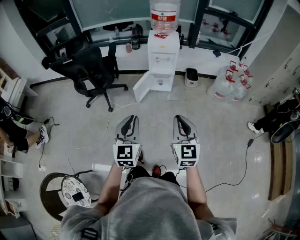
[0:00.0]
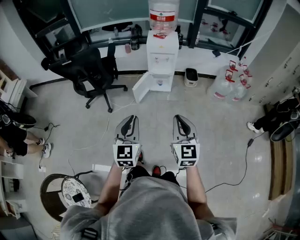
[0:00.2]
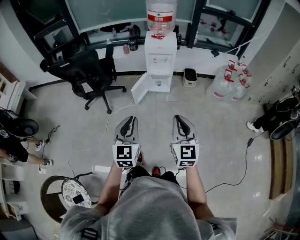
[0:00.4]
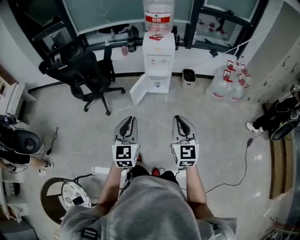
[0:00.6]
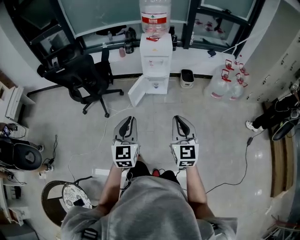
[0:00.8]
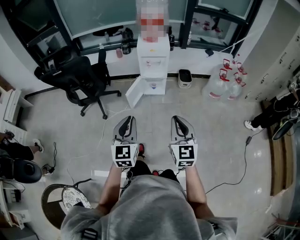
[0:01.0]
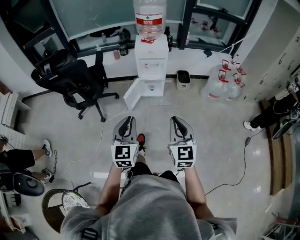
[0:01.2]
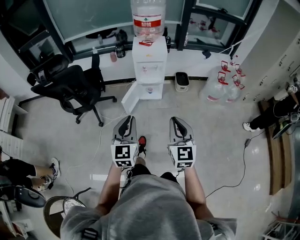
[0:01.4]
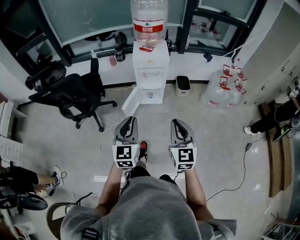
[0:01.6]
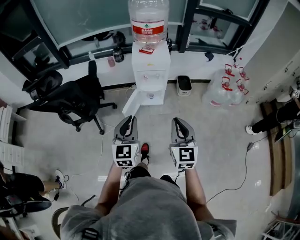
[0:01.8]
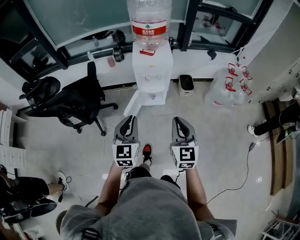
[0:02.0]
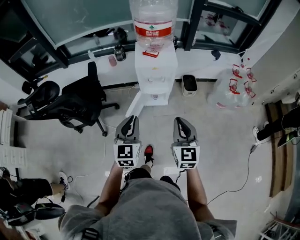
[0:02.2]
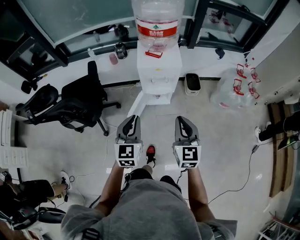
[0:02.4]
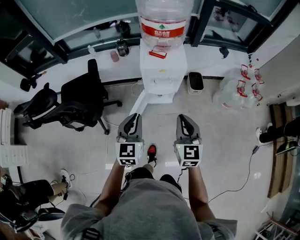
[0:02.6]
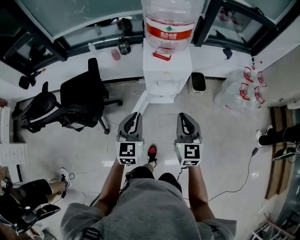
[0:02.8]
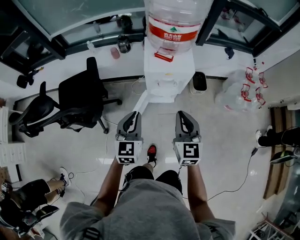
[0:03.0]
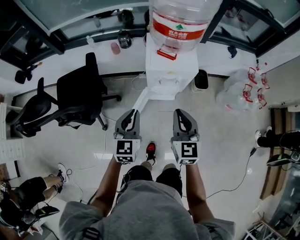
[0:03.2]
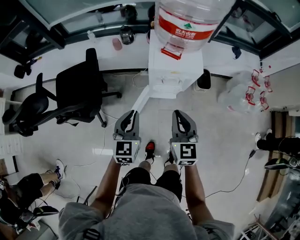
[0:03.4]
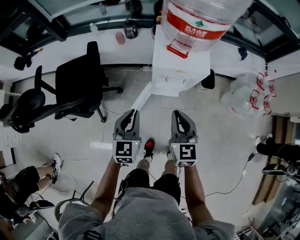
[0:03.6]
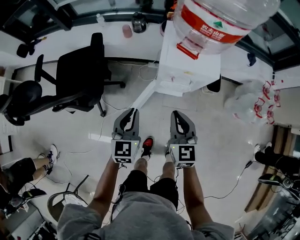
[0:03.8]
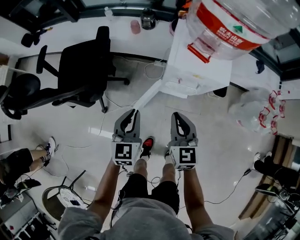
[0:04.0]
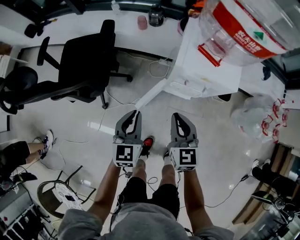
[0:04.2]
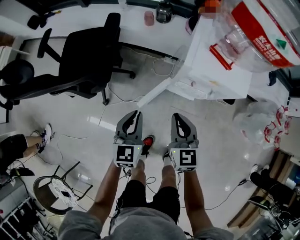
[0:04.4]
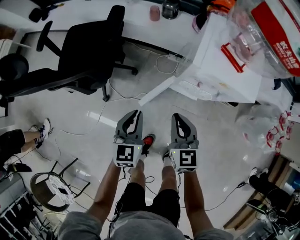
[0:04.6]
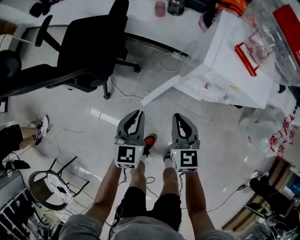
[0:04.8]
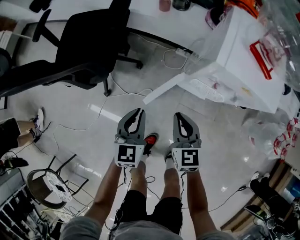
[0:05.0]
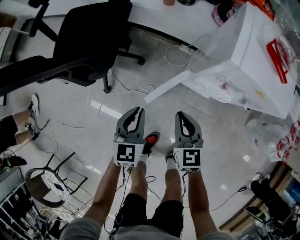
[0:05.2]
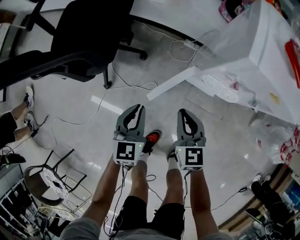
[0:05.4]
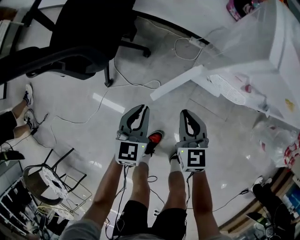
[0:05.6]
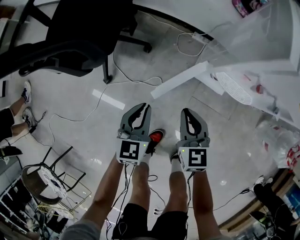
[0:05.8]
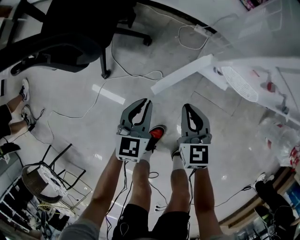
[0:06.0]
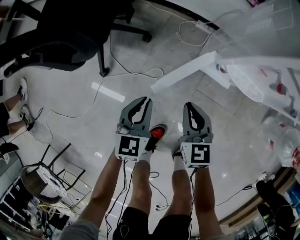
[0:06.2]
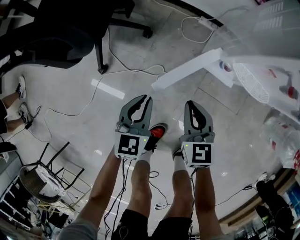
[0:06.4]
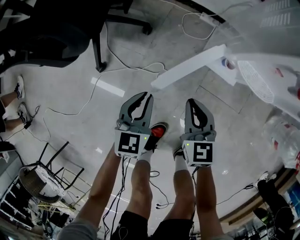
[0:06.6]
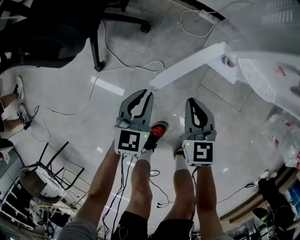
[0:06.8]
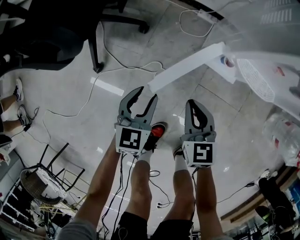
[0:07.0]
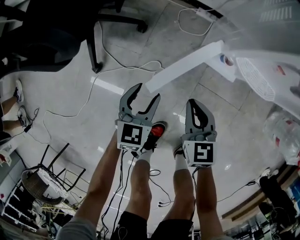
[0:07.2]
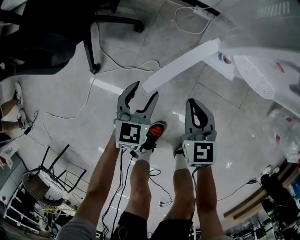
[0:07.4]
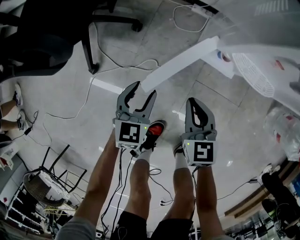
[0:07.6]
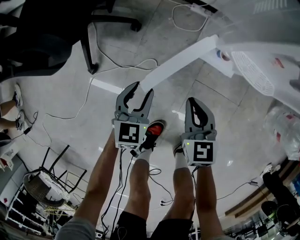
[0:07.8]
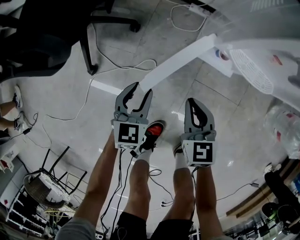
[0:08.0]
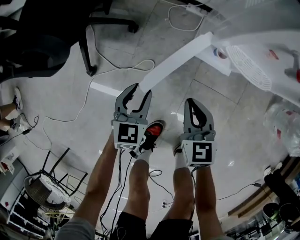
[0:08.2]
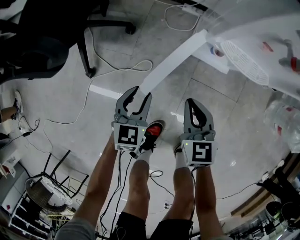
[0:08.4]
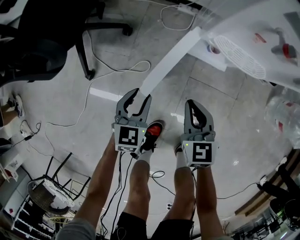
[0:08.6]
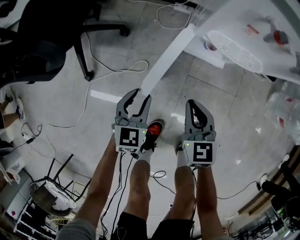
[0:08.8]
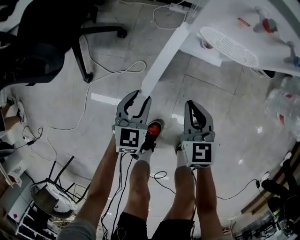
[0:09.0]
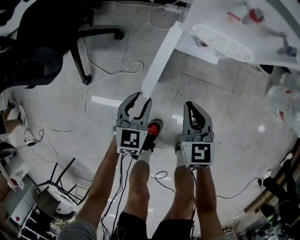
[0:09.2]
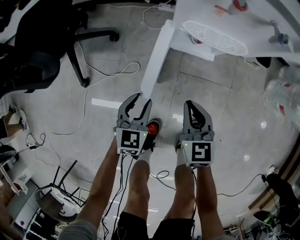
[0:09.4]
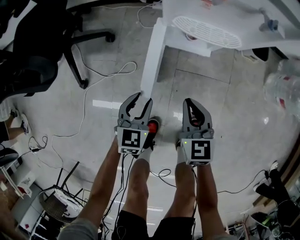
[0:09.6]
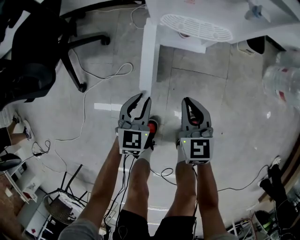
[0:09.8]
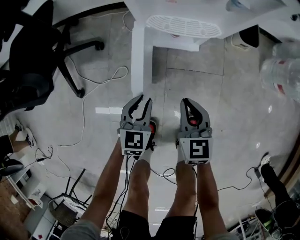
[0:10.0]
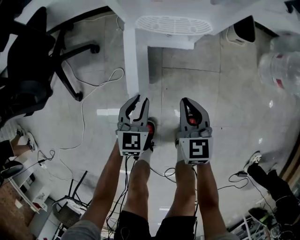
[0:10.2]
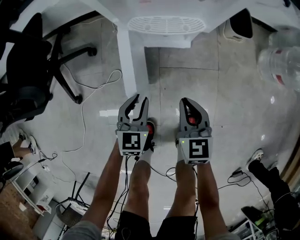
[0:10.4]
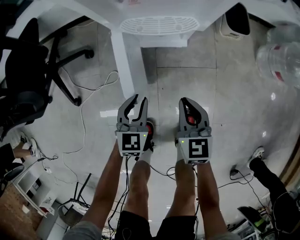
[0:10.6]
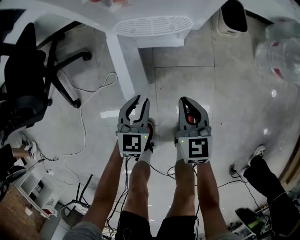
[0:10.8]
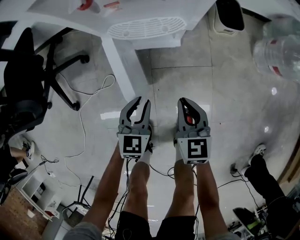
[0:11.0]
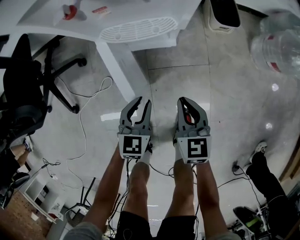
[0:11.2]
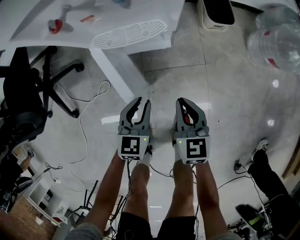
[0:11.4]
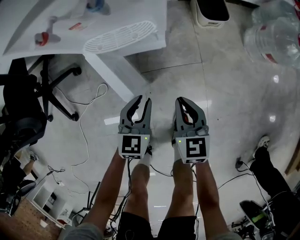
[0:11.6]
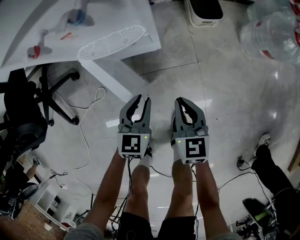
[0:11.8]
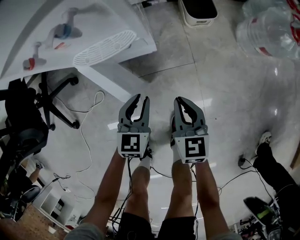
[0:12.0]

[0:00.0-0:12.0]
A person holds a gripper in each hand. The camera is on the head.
0:00.0 to 0:01.6: The grippers both shift forward by about 20 cm.
0:01.6 to 0:03.0: Both grippers move forward, some 30 cm.
0:03.0 to 0:04.4: The left gripper is displaced downward by about 15 cm, and changes its angle by approximately 20 degrees, while the right gripper goes about 25 cm downward, to the left and forward, and rotates some 30 degrees.
0:04.4 to 0:06.0: Both grippers move downward, about 30 cm.
0:06.0 to 0:07.6: Both grippers move downward, roughly 10 cm. The left gripper opens.
0:07.6 to 0:09.0: The left gripper shifts approximately 5 cm backward and to the right. Meanwhile the right gripper goes approximately 10 cm to the right and backward.
0:09.0 to 0:10.4: The grippers both shift to the right by about 15 cm.
0:10.4 to 0:12.0: The grippers both shift to the right by roughly 15 cm.

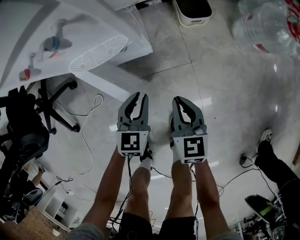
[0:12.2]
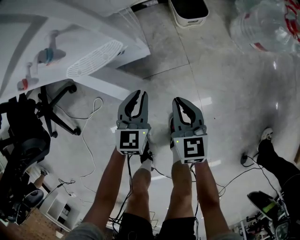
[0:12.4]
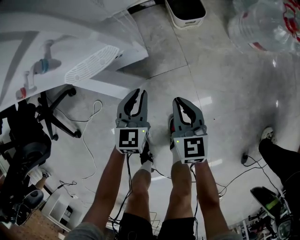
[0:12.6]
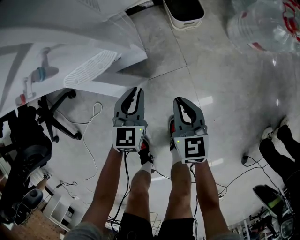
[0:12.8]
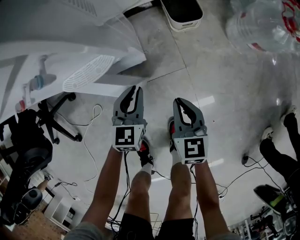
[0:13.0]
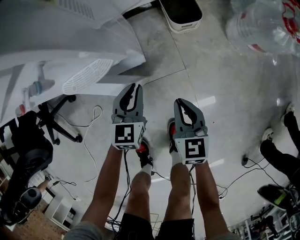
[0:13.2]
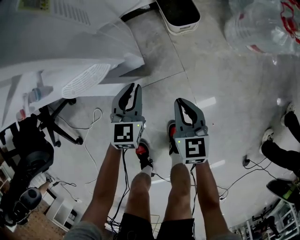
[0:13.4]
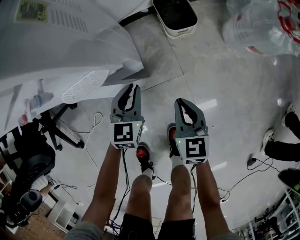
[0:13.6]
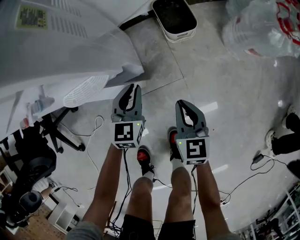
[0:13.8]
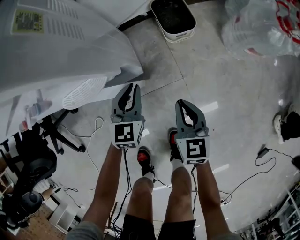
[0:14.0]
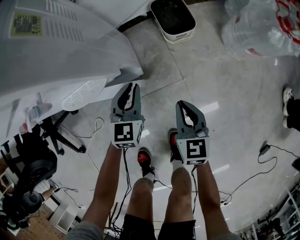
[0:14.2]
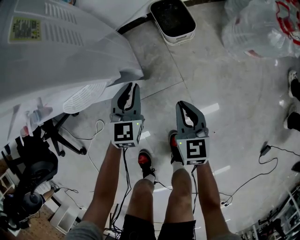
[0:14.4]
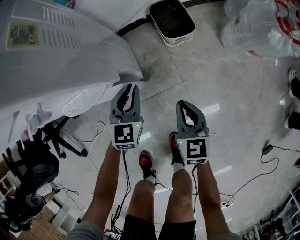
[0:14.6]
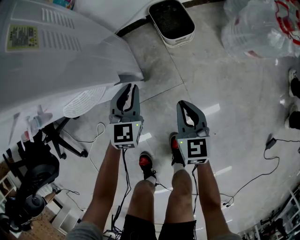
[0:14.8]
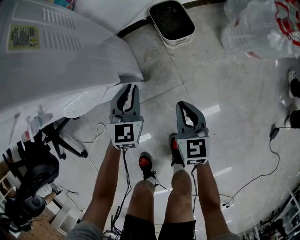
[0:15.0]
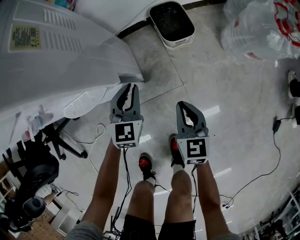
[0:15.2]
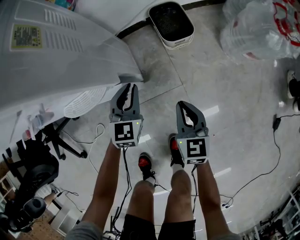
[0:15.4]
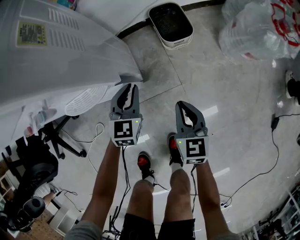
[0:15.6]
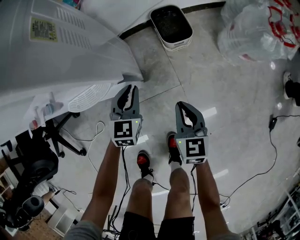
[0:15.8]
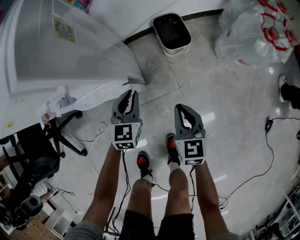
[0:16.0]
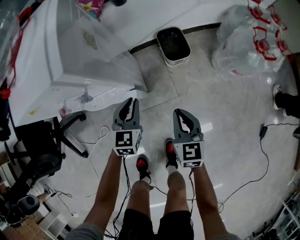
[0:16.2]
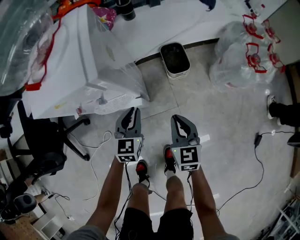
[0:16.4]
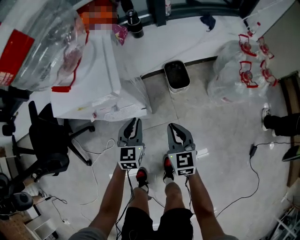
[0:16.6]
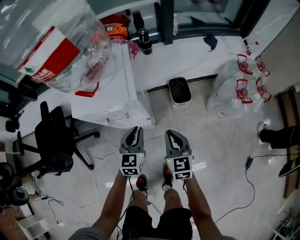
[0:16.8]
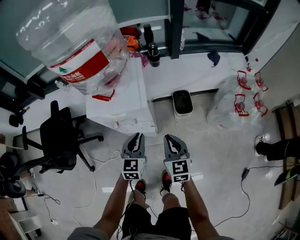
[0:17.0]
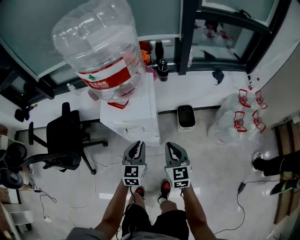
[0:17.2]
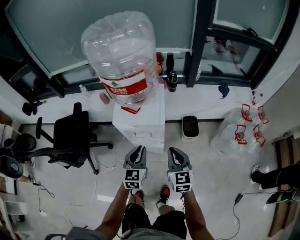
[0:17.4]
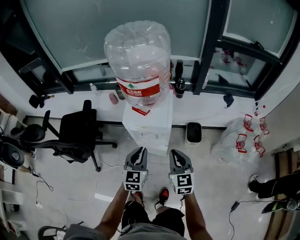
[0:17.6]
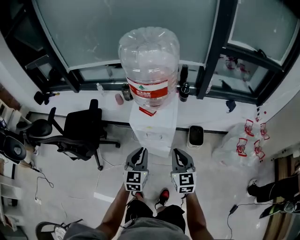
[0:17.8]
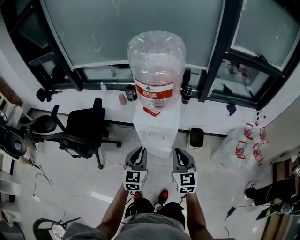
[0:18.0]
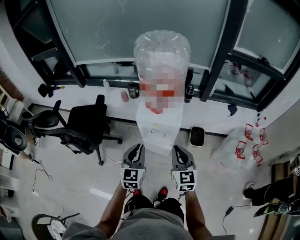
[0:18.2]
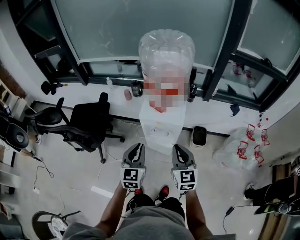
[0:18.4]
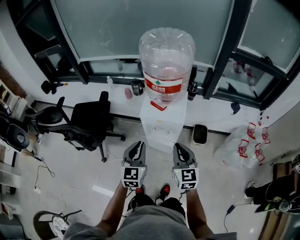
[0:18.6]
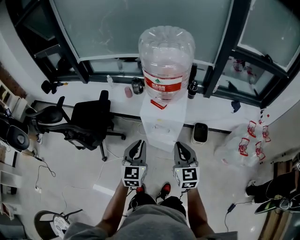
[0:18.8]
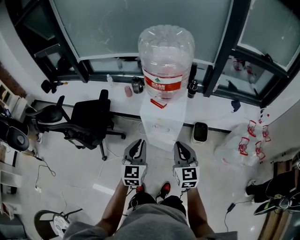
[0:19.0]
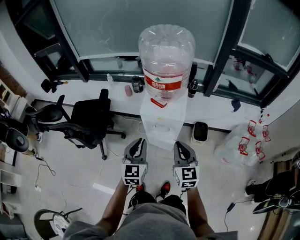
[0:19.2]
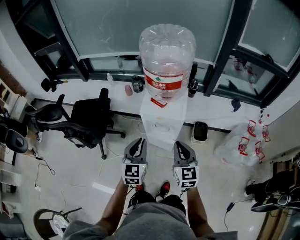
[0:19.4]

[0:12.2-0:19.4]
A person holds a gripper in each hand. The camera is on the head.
0:12.2 to 0:13.6: The left gripper travels forward by approximately 10 cm. The right gripper is displaced to the right and forward by about 10 cm.
0:13.6 to 0:15.0: The grippers move only a little.
0:15.0 to 0:16.6: The grippers both shift upward by roughly 25 cm.
0:16.6 to 0:18.0: The left gripper travels upward and to the left by about 35 cm, and rotates roughly 20 degrees; the right gripper heads upward, covering about 35 cm, and changes its angle by approximately 20 degrees.
0:18.0 to 0:19.4: The left gripper moves some 5 cm.

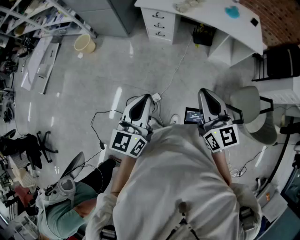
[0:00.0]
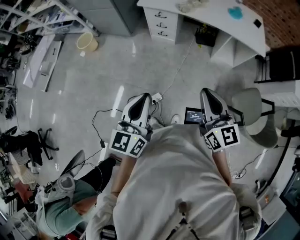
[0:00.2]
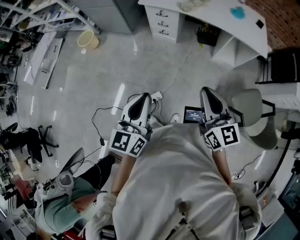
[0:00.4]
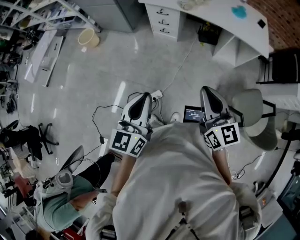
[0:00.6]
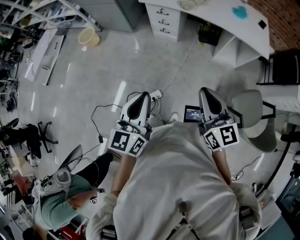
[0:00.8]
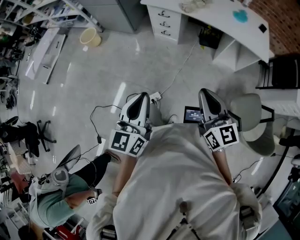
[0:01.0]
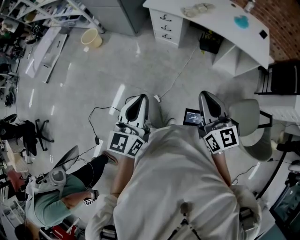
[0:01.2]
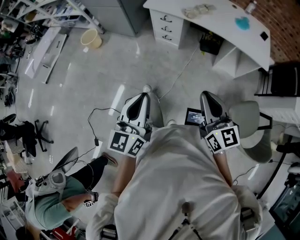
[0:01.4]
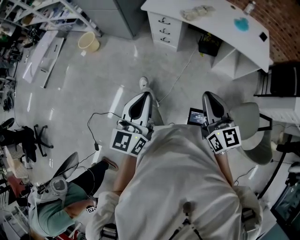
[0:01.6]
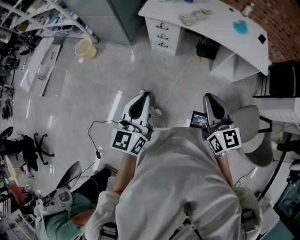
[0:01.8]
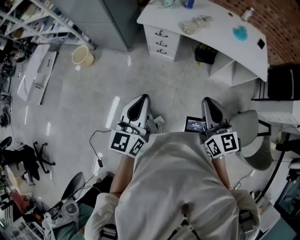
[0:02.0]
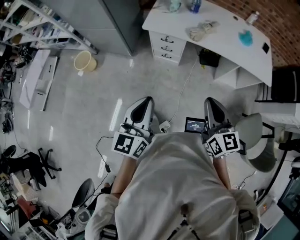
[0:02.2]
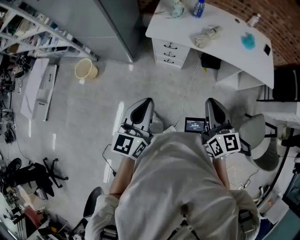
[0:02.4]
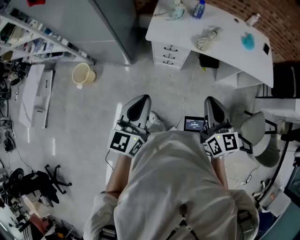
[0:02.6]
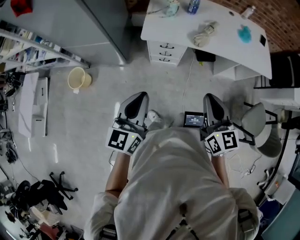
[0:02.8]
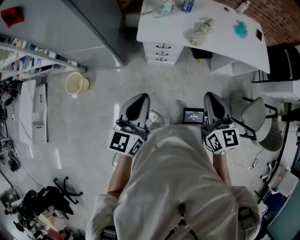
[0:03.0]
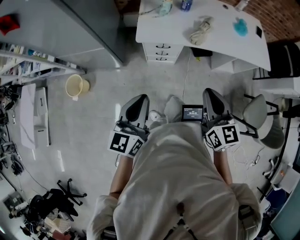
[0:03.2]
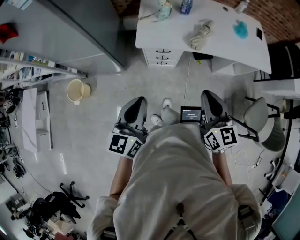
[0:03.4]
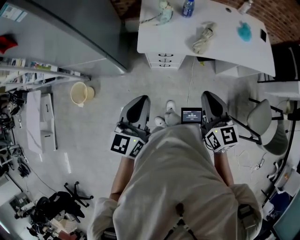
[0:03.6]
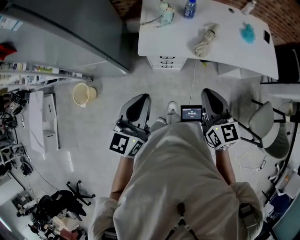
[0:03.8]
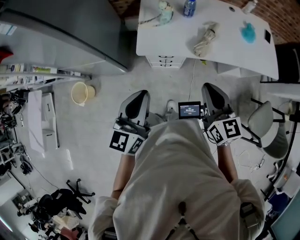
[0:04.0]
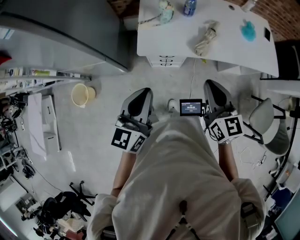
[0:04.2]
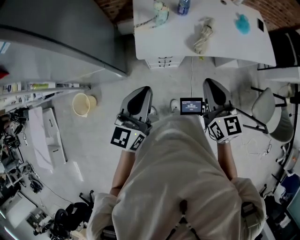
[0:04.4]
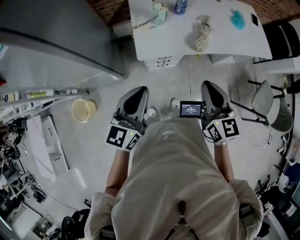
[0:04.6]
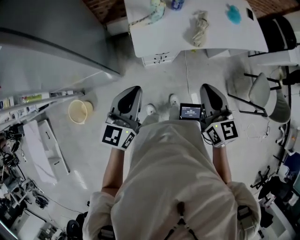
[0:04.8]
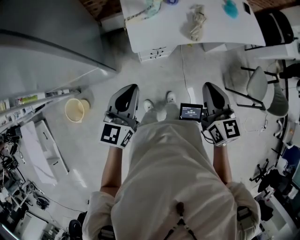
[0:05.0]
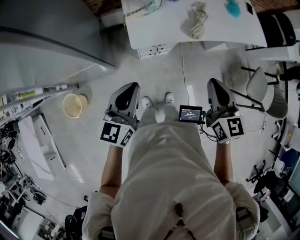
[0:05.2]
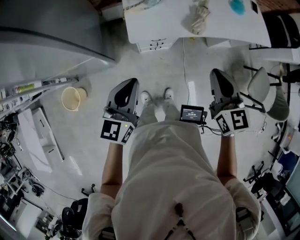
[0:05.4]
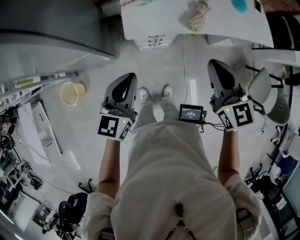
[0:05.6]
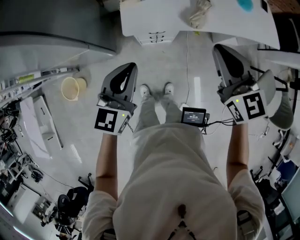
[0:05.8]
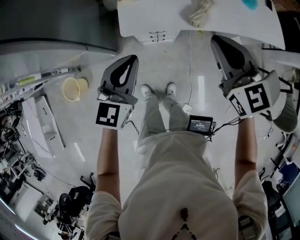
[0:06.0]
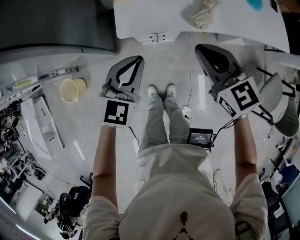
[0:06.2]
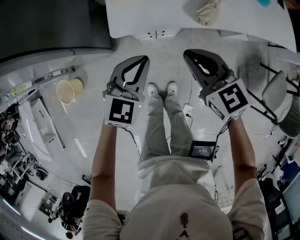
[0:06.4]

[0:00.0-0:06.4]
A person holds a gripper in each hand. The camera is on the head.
0:00.0 to 0:01.6: The two grippers go roughly 10 cm forward.
0:01.6 to 0:03.2: Both grippers travel together forward and to the left, some 40 cm. The right gripper rotates approximately 20 degrees. The left gripper rotates approximately 20 degrees.
0:03.2 to 0:04.8: The grippers both shift forward and to the left by approximately 20 cm.
0:04.8 to 0:06.4: The left gripper moves downward, to the right and forward, some 25 cm, and turns by roughly 30 degrees; the right gripper travels downward and forward by approximately 20 cm, and changes its angle by roughly 30 degrees.
